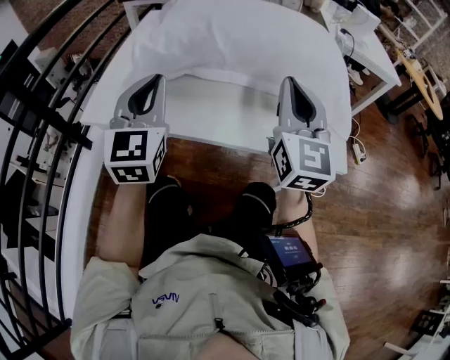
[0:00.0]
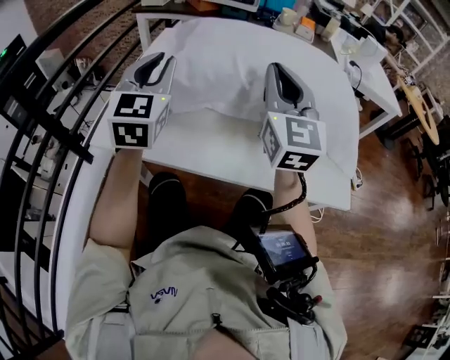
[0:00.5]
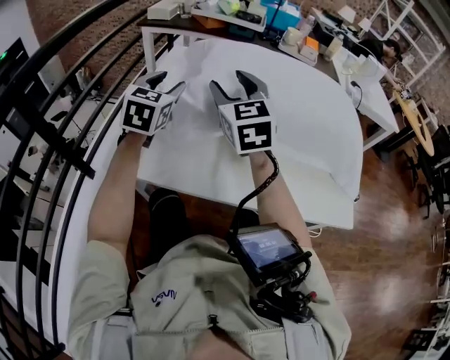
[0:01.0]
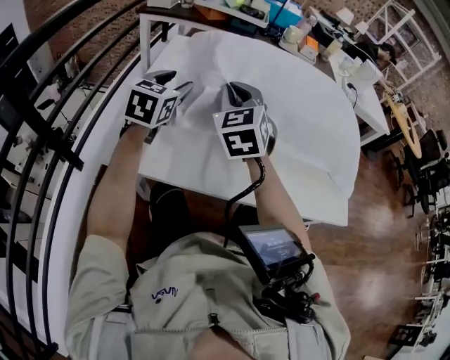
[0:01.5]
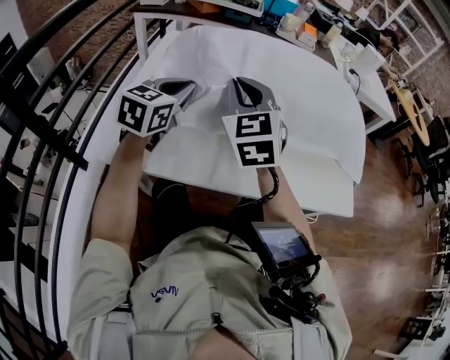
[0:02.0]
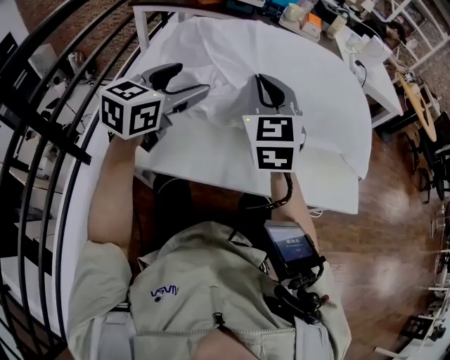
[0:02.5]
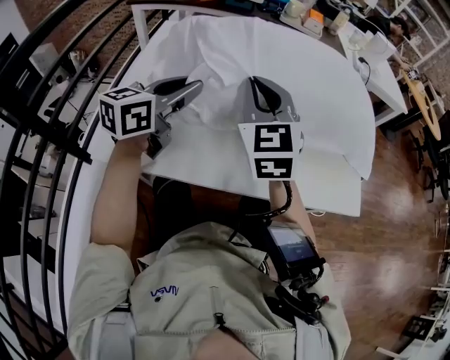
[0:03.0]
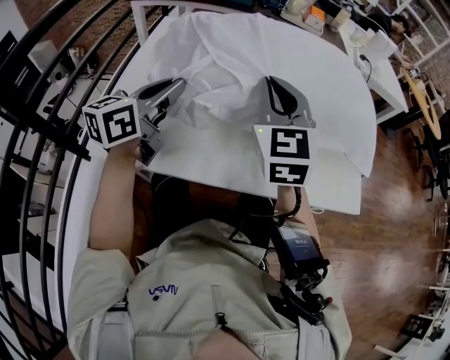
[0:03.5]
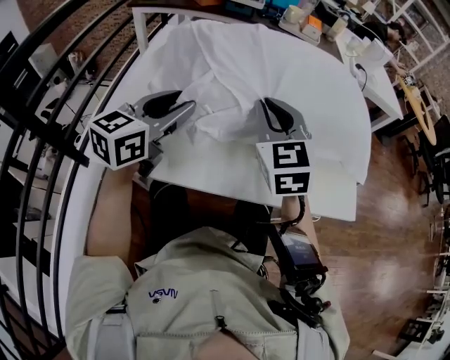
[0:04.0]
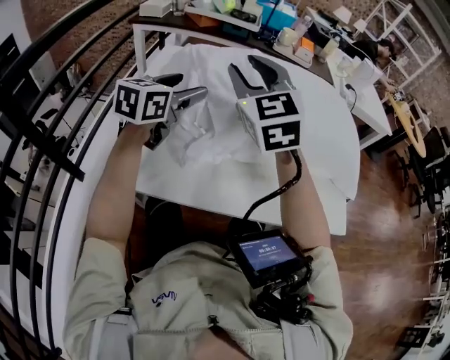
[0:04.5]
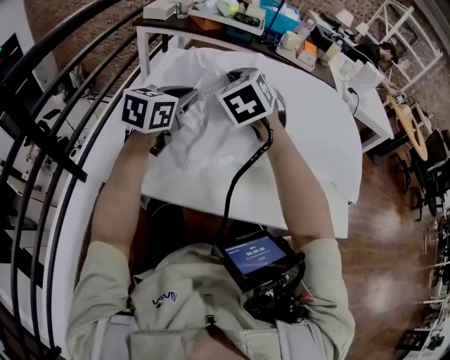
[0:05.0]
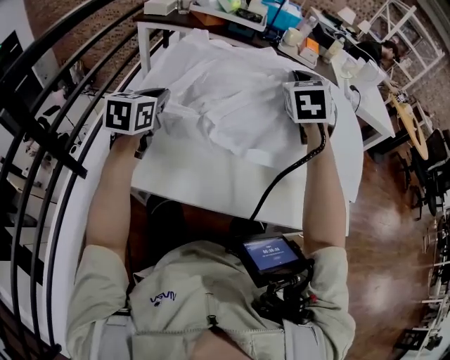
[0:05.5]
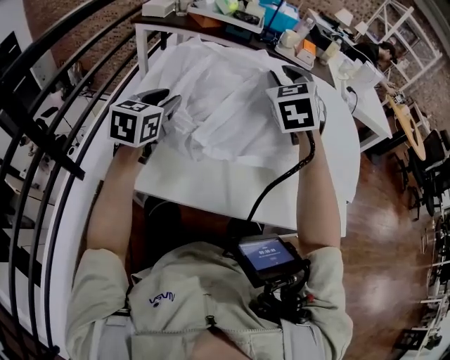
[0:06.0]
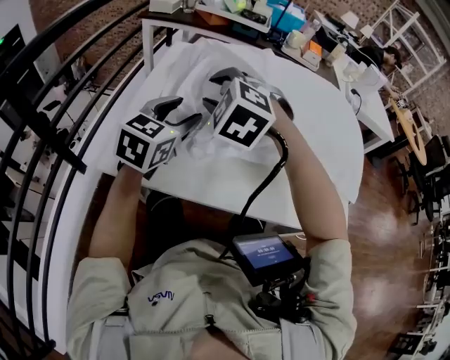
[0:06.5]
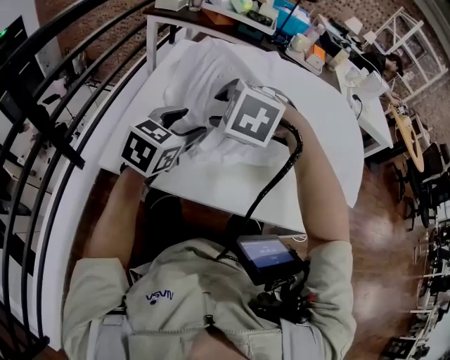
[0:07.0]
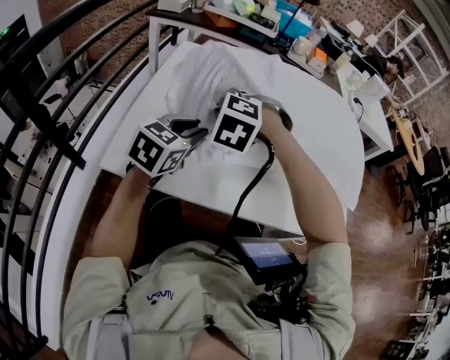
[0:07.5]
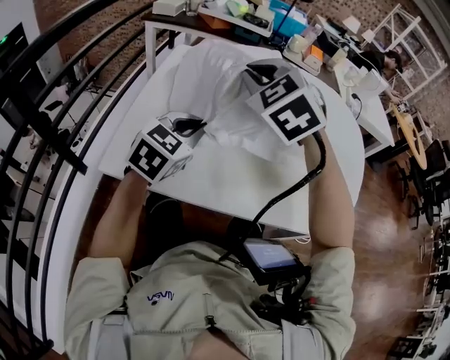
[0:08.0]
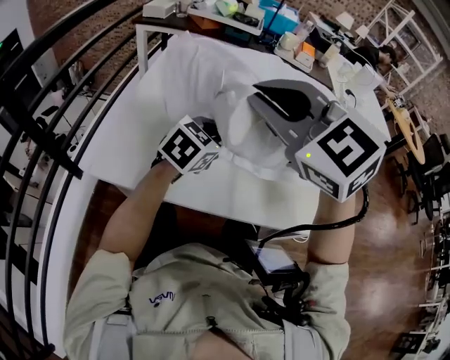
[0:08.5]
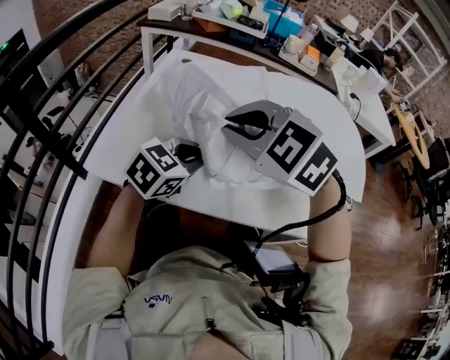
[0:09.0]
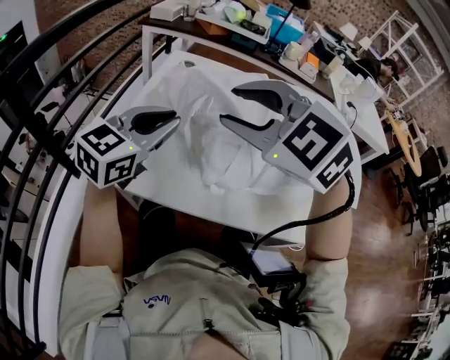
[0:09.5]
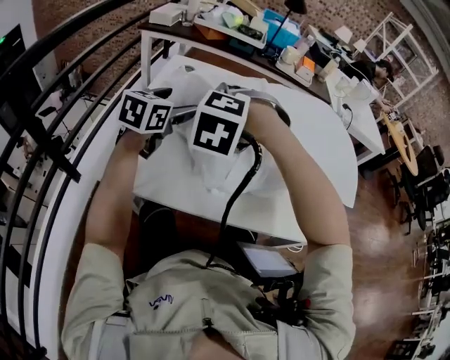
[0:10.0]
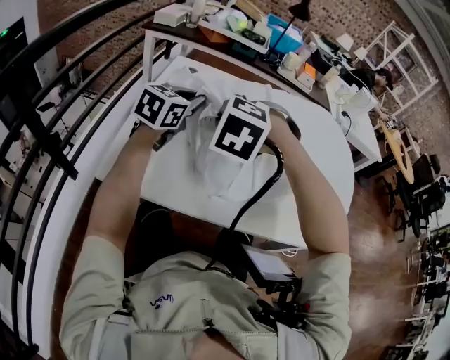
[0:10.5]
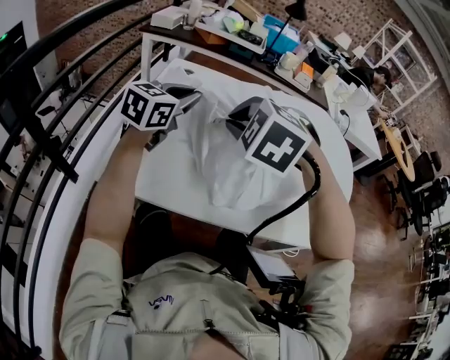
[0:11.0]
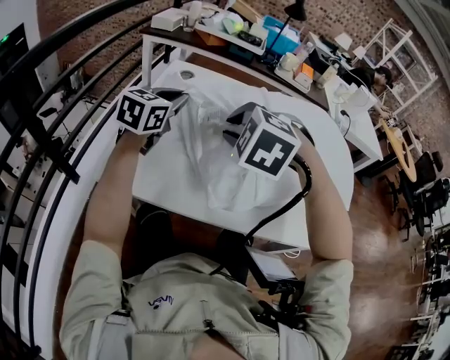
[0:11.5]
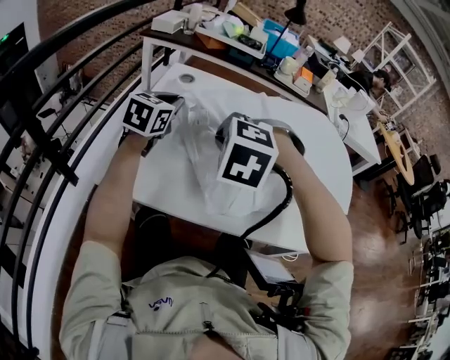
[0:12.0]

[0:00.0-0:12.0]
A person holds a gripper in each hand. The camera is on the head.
0:00.0 to 0:02.0: The right gripper travels to the left and forward by roughly 25 cm, swivels some 30 degrees, and opens, then closes once more; the left gripper moves forward, some 15 cm, changes its angle by about 40 degrees, and opens, then closes again.
0:02.0 to 0:04.0: The left gripper moves backward, approximately 5 cm, and opens and closes again; the right gripper heads to the right, covering approximately 10 cm.
0:04.0 to 0:06.0: The left gripper moves forward and to the left, approximately 10 cm, swivels about 20 degrees, and opens, then closes once more; the right gripper swings left and right, some 15 cm each way, with 2 reversals, and opens its fingers.
0:06.0 to 0:08.0: The right gripper travels to the left and backward by some 15 cm, rotates some 30 degrees, and closes; the left gripper goes approximately 10 cm to the right and backward, and swivels about 20 degrees.
0:08.0 to 0:10.0: The right gripper moves up and down over approximately 15 cm, changing direction 3 times, turns by roughly 40 degrees, and opens up, while the left gripper is displaced forward and to the left by about 10 cm, and opens up.
0:10.0 to 0:12.0: The right gripper ends up approximately 5 cm from where it was, and closes. Meanwhile the left gripper closes its fingers.

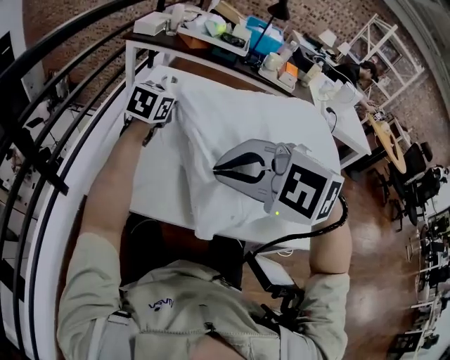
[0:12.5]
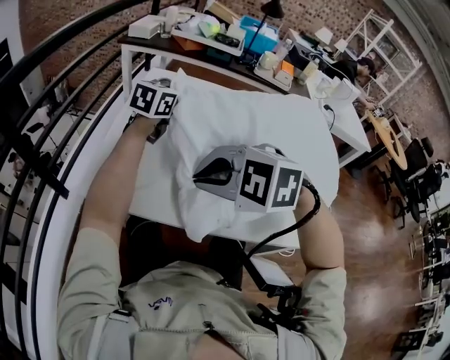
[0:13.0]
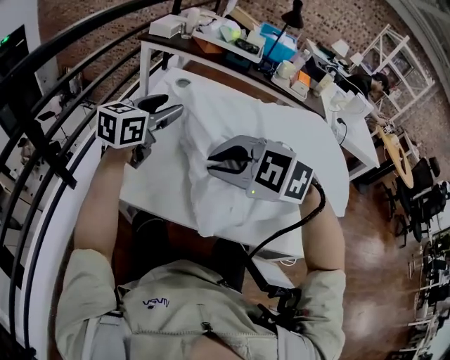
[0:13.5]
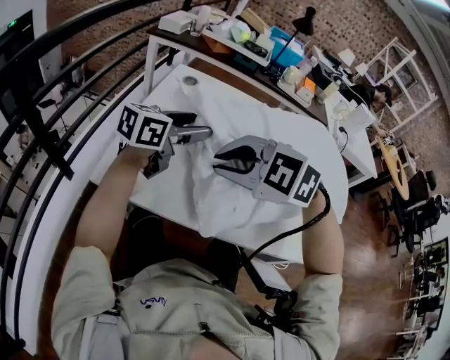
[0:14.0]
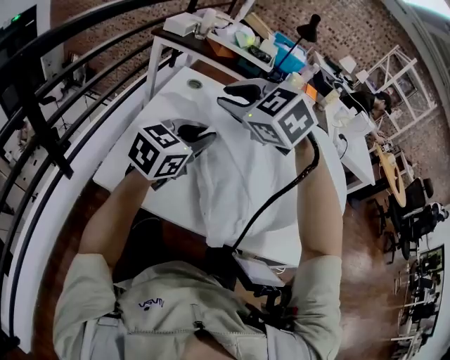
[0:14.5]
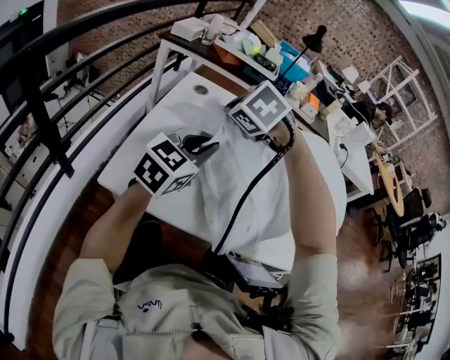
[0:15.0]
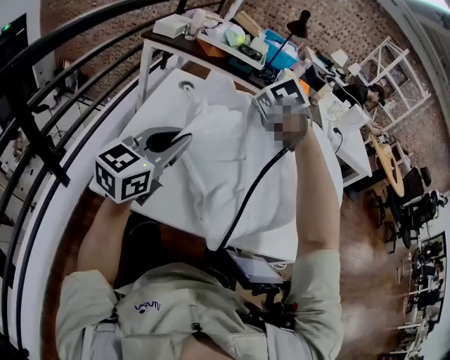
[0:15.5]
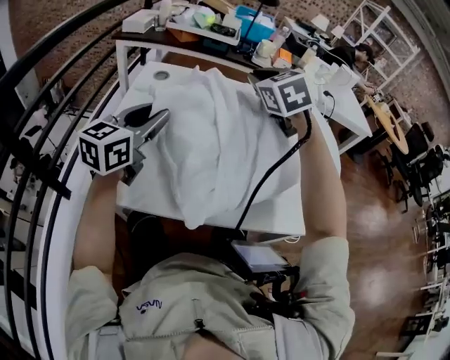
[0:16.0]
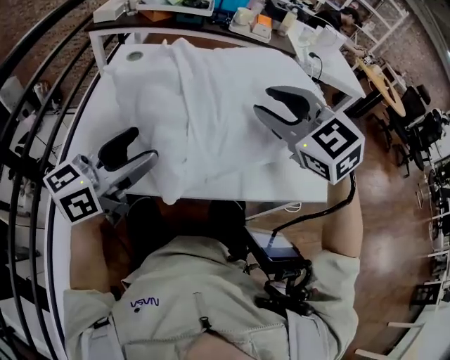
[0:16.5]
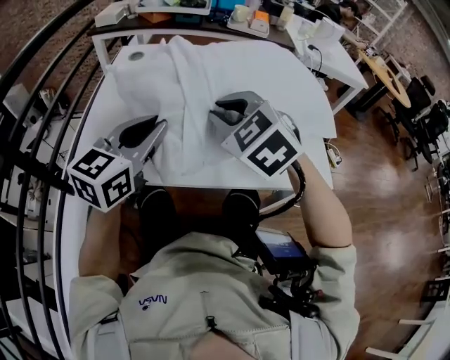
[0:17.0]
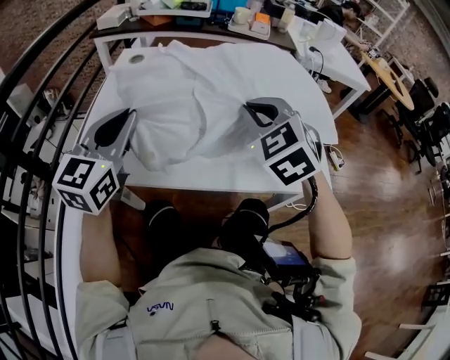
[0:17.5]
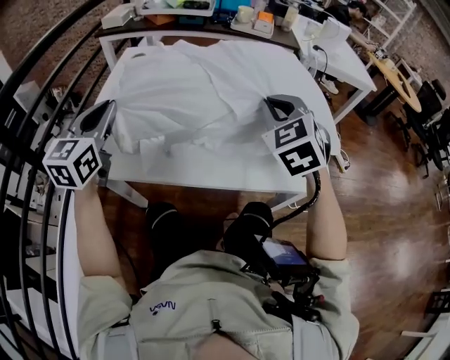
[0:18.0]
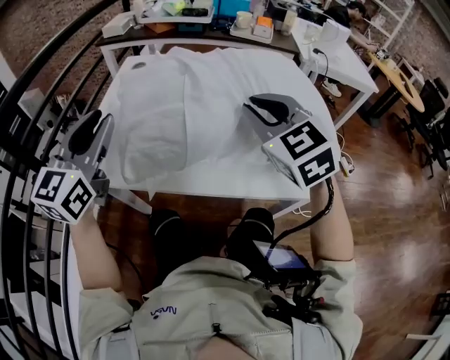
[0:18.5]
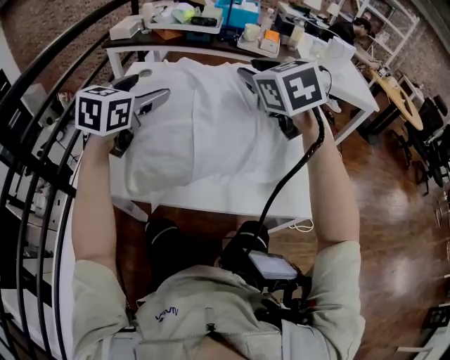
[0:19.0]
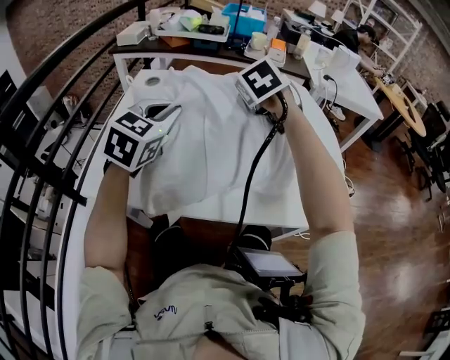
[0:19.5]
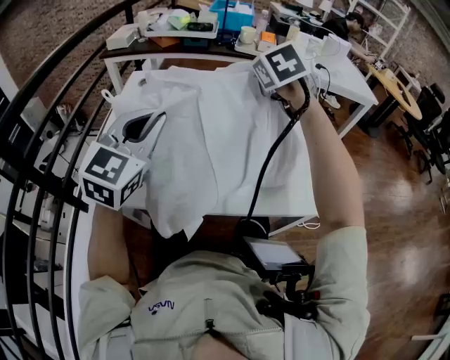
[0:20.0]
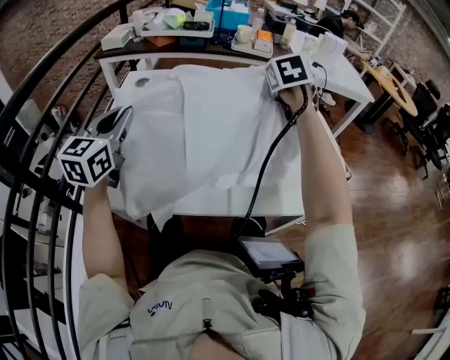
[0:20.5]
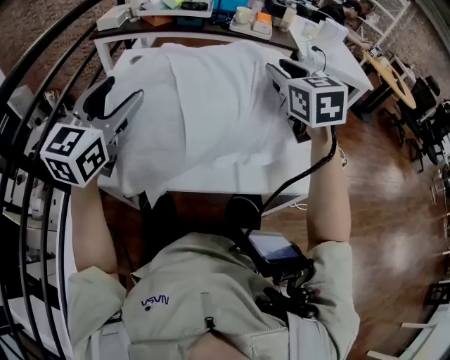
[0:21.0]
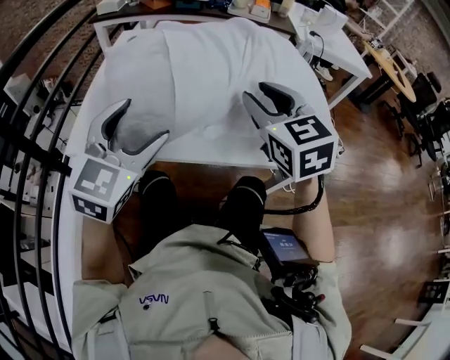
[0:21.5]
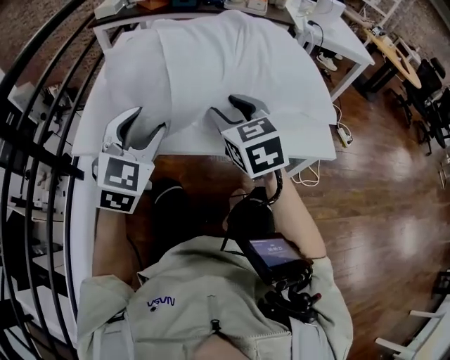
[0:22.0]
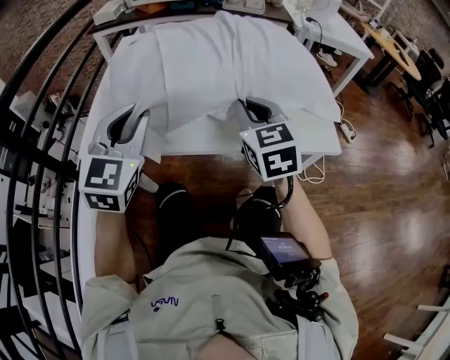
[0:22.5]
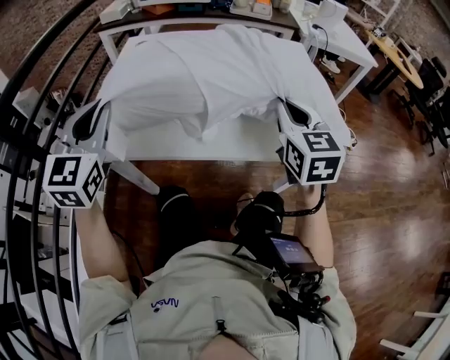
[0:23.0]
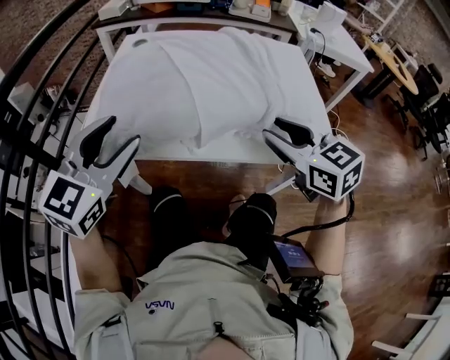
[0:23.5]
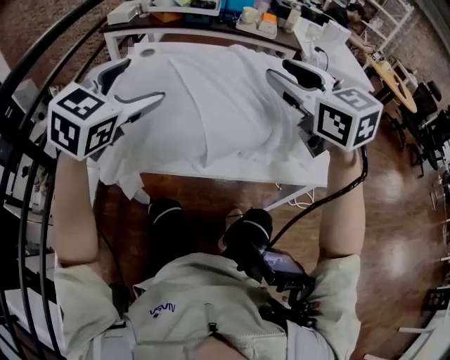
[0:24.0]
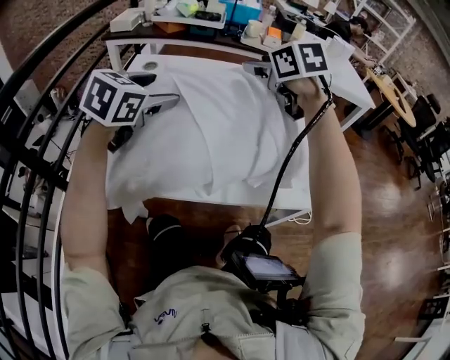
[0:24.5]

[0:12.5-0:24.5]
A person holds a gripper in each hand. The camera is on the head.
0:12.5 to 0:14.5: The left gripper is displaced backward by about 15 cm, and opens and closes again. Meanwhile the right gripper is displaced forward by approximately 20 cm, turns by approximately 20 degrees, and opens up.
0:14.5 to 0:16.5: The left gripper moves forward and backward over roughly 10 cm, changing direction 2 times, swivels some 20 degrees, and opens its fingers, while the right gripper moves to the right, some 25 cm, turns by about 20 degrees, and closes, then reopens.
0:16.5 to 0:18.5: The left gripper is displaced upward by some 5 cm, changes its angle by approximately 40 degrees, and closes its fingers, while the right gripper goes left and right, approximately 15 cm each way, reversing 2 times, and closes its fingers.
0:18.5 to 0:20.5: The left gripper swings forward and backward, approximately 15 cm each way, with 2 reversals, and opens, then closes once more; the right gripper moves forward, about 25 cm, and turns by roughly 40 degrees.
0:20.5 to 0:22.5: The right gripper travels backward by some 25 cm, swivels some 20 degrees, and opens, then closes once more, while the left gripper moves backward and to the right, about 15 cm, and opens and closes again.
0:22.5 to 0:24.5: The right gripper travels forward and upward by some 25 cm, and opens up; the left gripper heads forward, covering about 15 cm, turns by about 30 degrees, and opens its fingers.

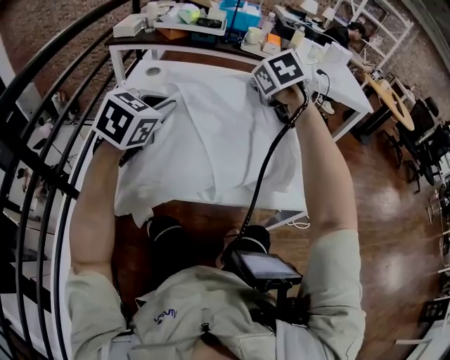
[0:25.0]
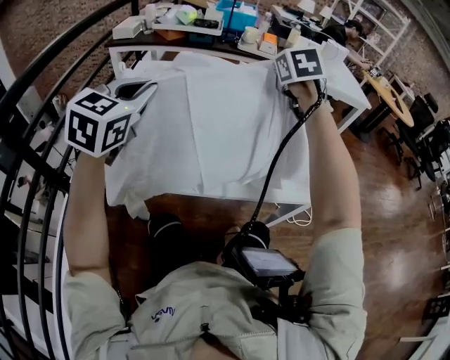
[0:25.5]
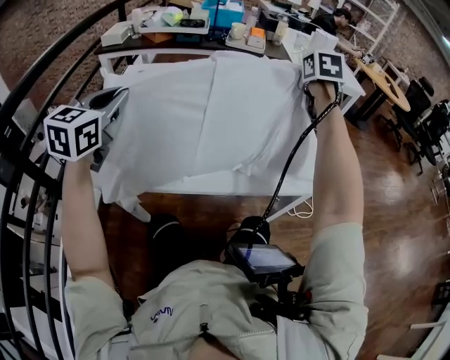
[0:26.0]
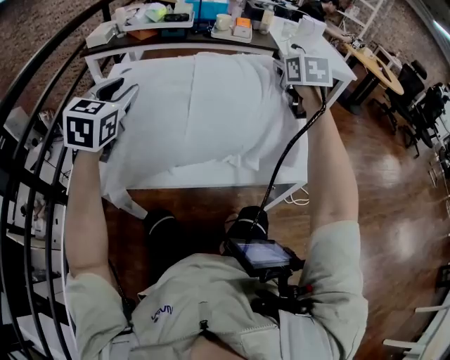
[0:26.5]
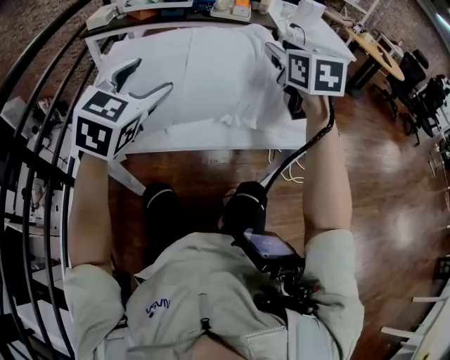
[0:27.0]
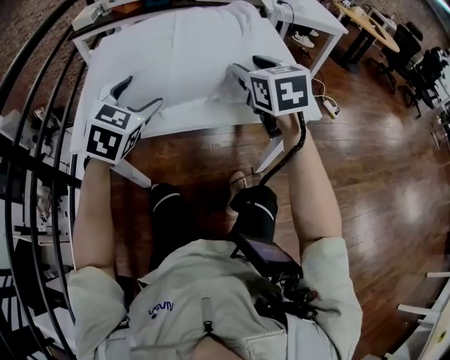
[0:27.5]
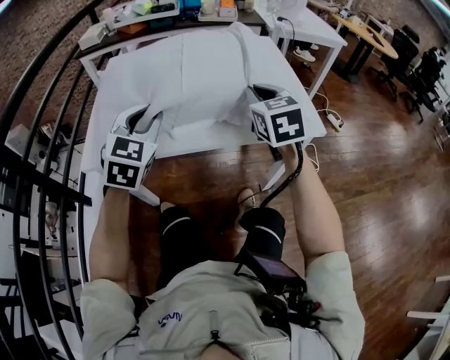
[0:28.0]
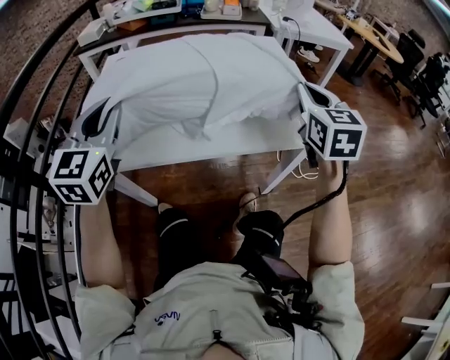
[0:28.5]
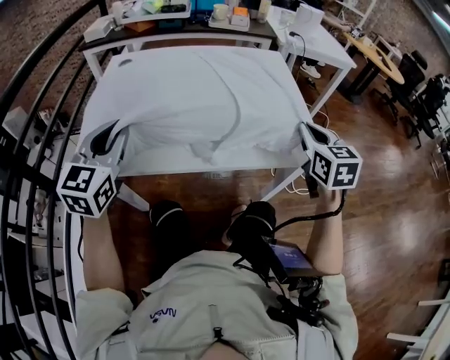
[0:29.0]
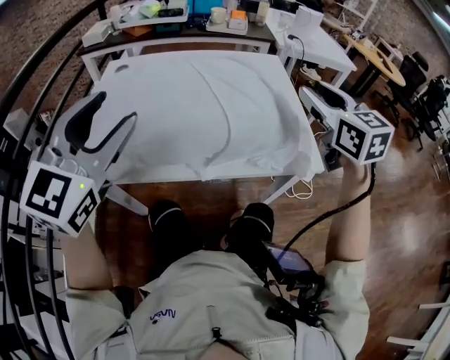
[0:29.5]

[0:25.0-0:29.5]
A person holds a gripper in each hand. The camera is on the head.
0:25.0 to 0:27.0: The left gripper shifts some 10 cm backward and to the right, and opens. The right gripper shifts roughly 20 cm to the right, backward and upward, tips its fingers upward by roughly 30 degrees, and opens up.
0:27.0 to 0:29.5: The right gripper heads to the right, covering about 10 cm, and closes, then opens again. Meanwhile the left gripper moves up and down over approximately 15 cm, changing direction 3 times, and closes, then reopens.
